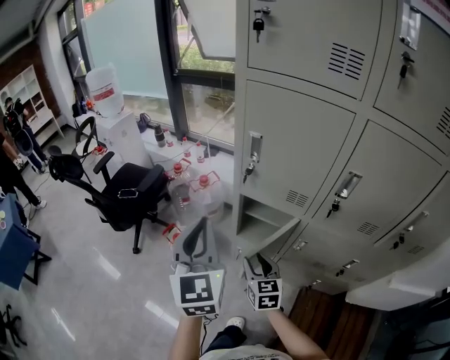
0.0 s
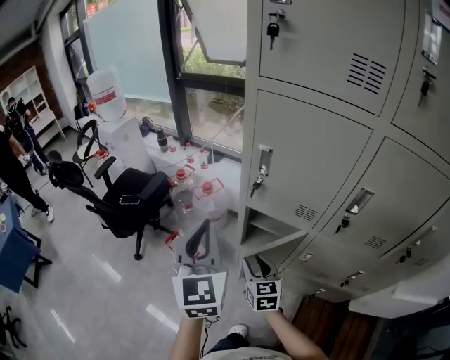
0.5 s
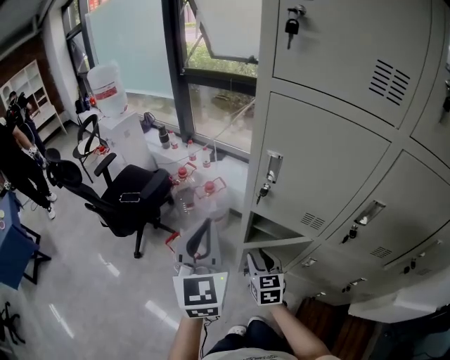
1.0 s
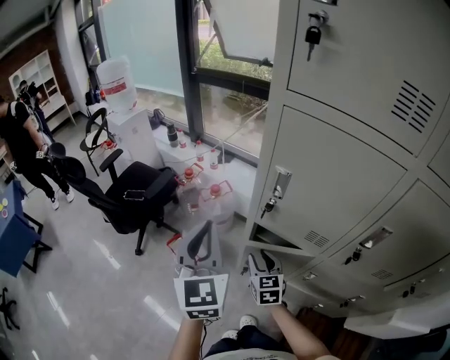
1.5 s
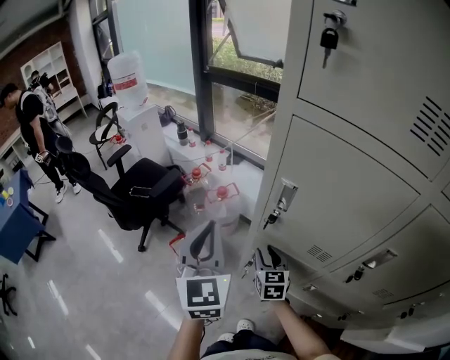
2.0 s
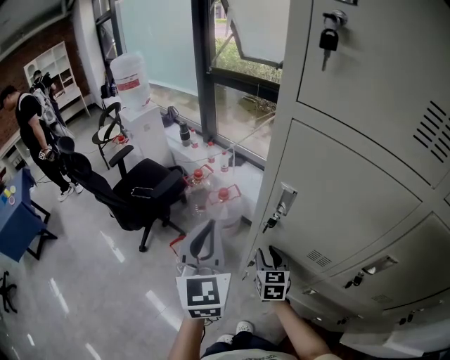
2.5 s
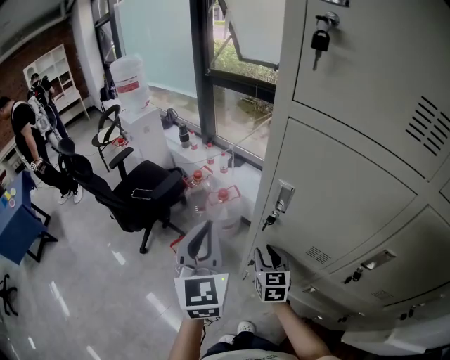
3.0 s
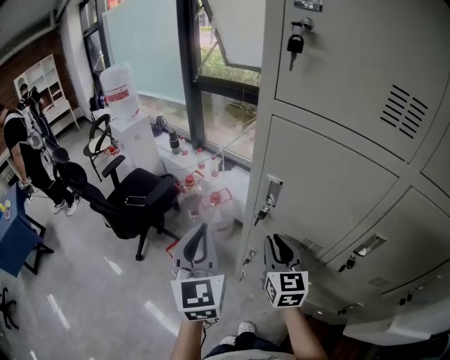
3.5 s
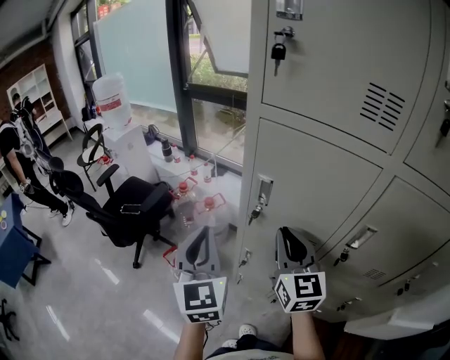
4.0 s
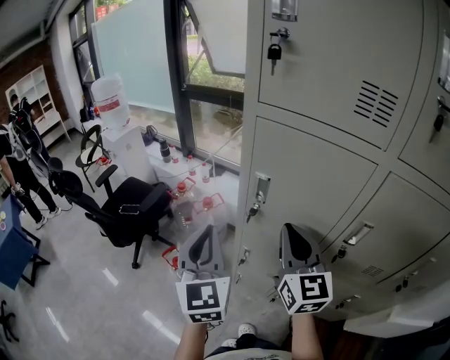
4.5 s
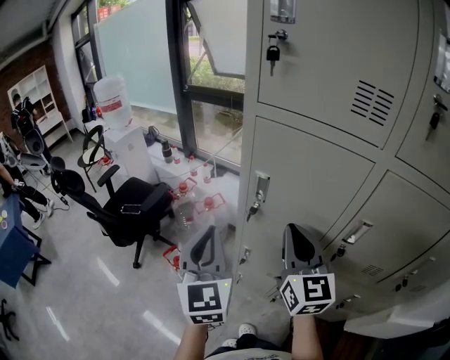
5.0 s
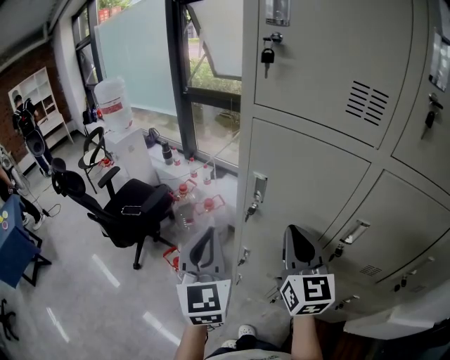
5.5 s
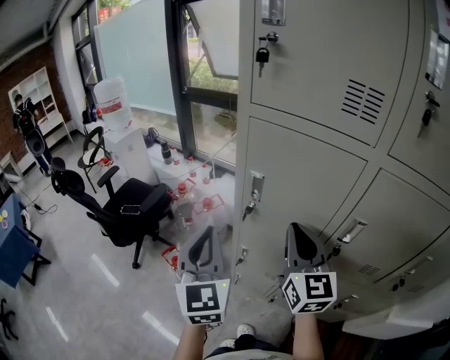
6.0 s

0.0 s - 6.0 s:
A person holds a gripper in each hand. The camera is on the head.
0.0 s - 2.0 s: Both grippers move forward, roughly 15 cm.
2.0 s - 4.0 s: The right gripper moves upward, approximately 25 cm, rotates approximately 20 degrees, and closes up.
4.0 s - 6.0 s: The right gripper shifts by about 5 cm.

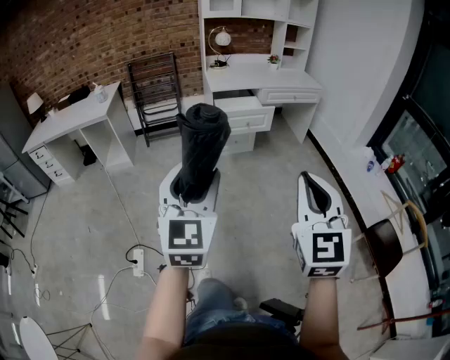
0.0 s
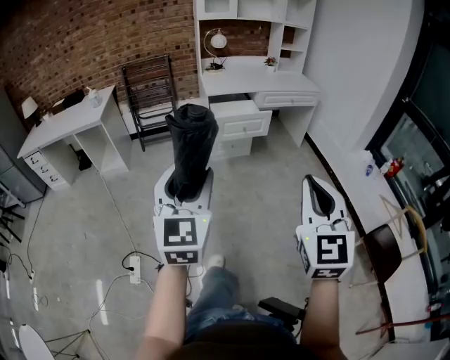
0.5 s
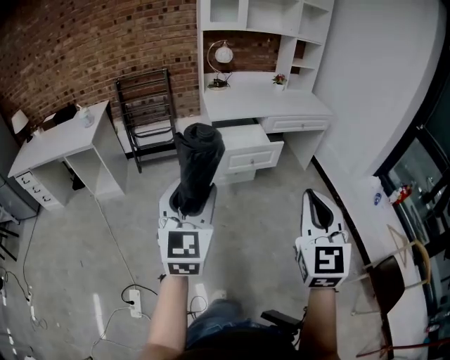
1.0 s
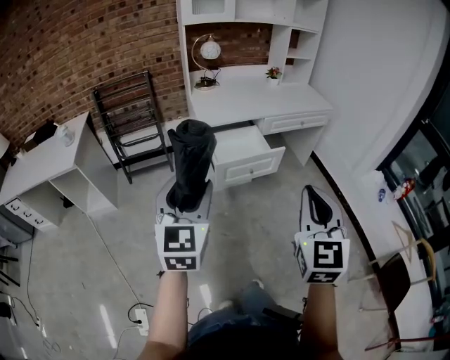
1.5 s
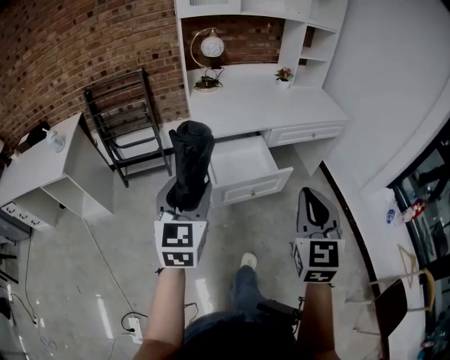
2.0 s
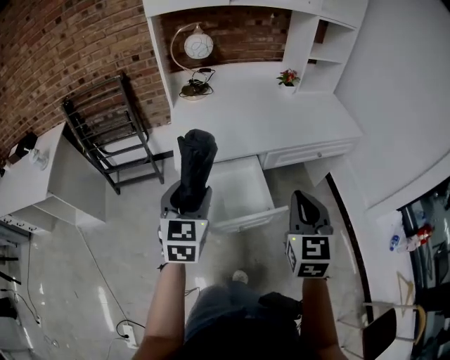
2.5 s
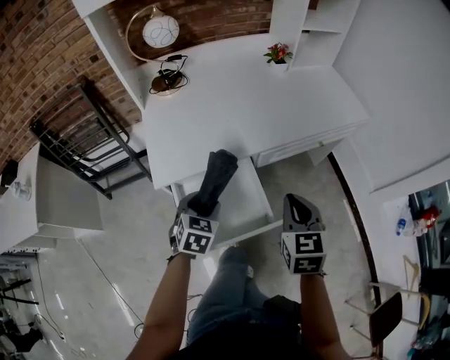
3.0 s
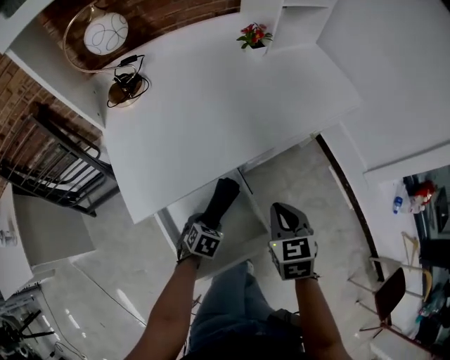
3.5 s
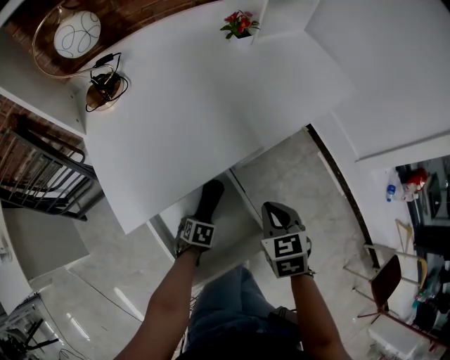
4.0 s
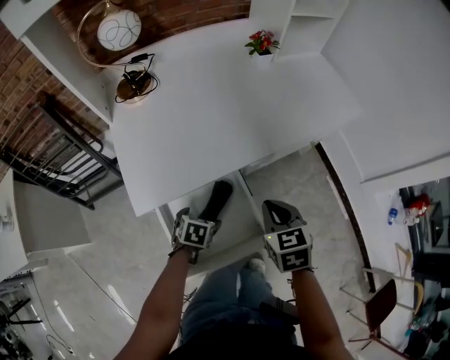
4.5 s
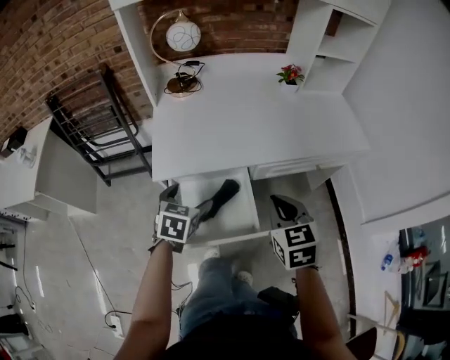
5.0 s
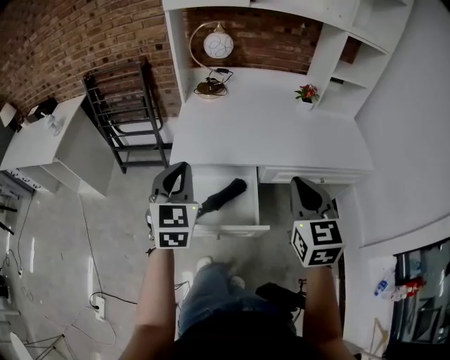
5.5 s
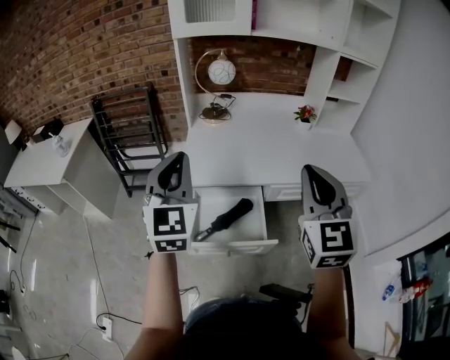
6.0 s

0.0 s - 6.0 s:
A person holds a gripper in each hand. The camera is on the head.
0.0 s - 2.0 s: Both grippers are carried forward, approximately 60 cm.
2.0 s - 4.0 s: The right gripper shifts by about 50 cm, and angles its fingers downward, by about 40 degrees, while the left gripper goes roughly 50 cm downward, and tilts its fingers approximately 70 degrees downward.
4.0 s - 6.0 s: The right gripper shifts roughly 35 cm upward, and tilts its fingers about 50 degrees upward. The left gripper heads upward, covering roughly 60 cm, angles its fingers upward, by some 80 degrees, and closes its fingers.

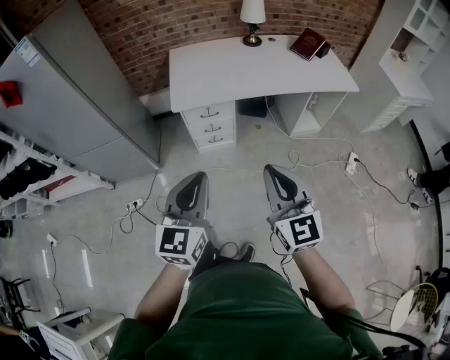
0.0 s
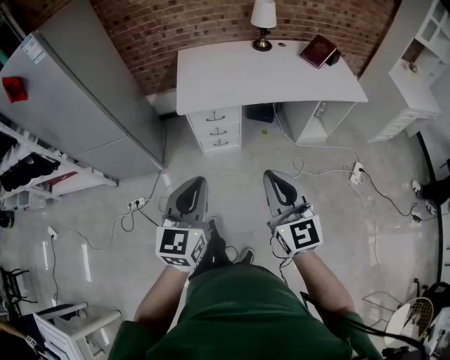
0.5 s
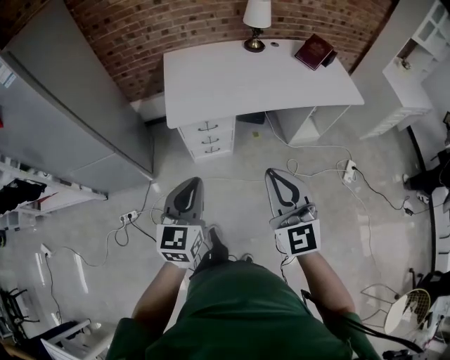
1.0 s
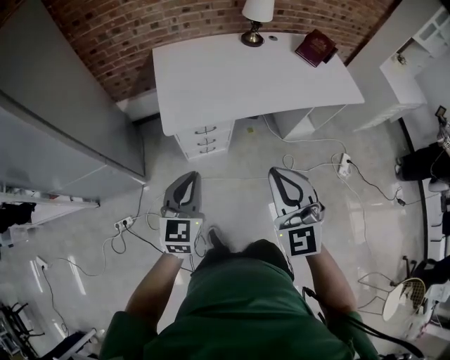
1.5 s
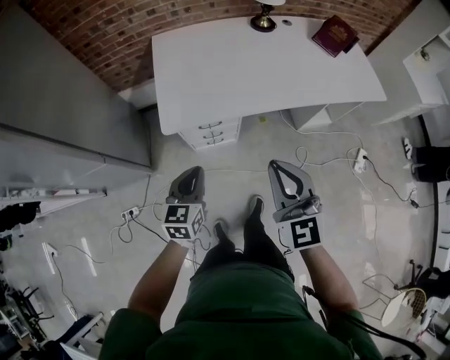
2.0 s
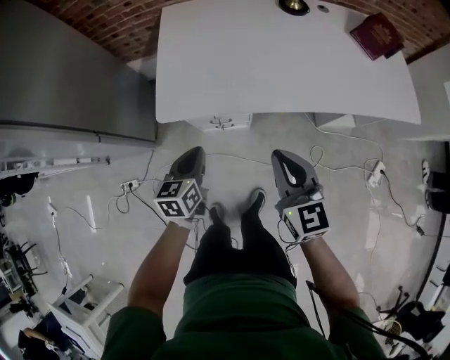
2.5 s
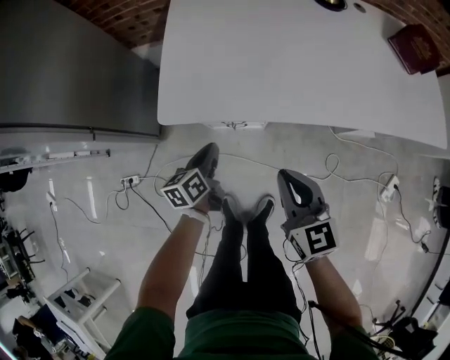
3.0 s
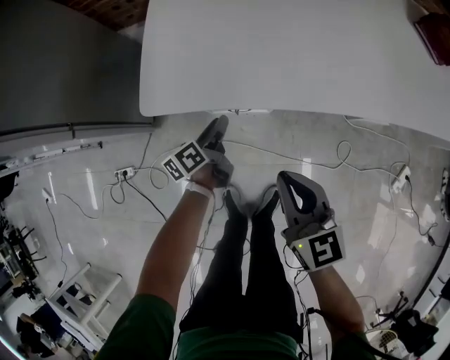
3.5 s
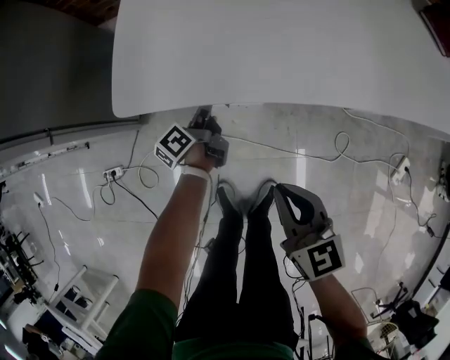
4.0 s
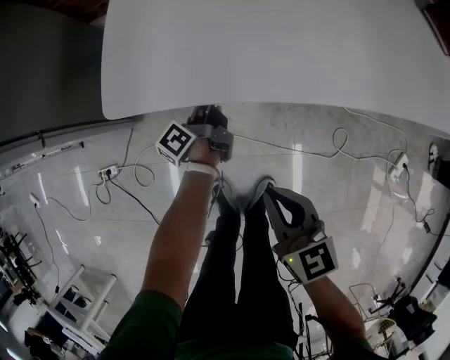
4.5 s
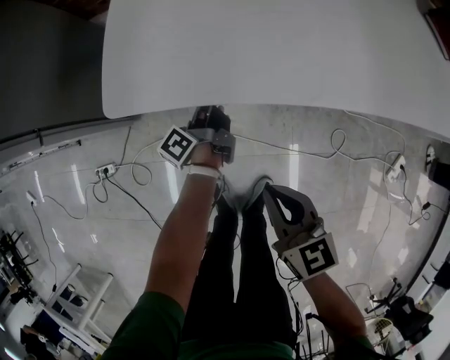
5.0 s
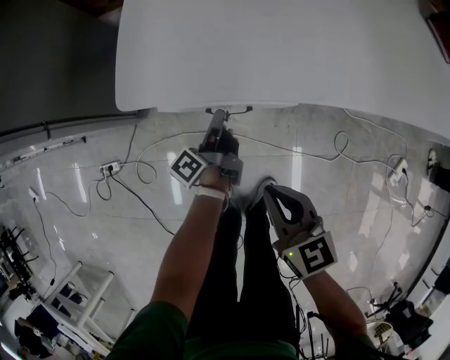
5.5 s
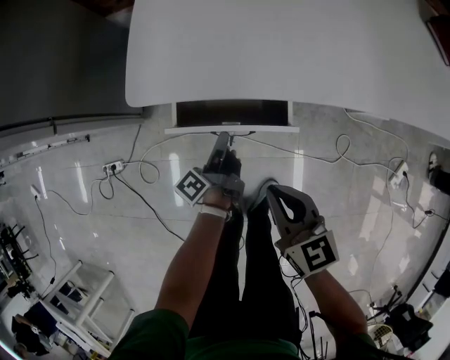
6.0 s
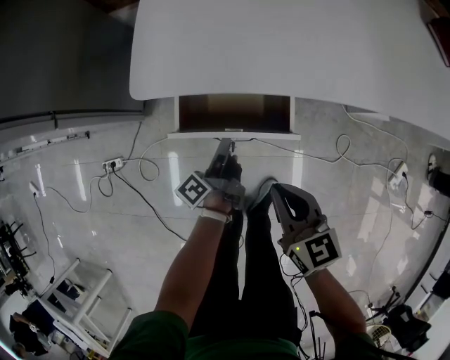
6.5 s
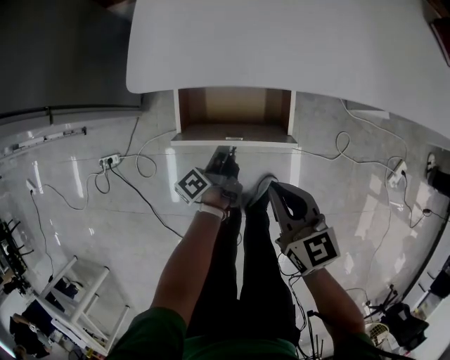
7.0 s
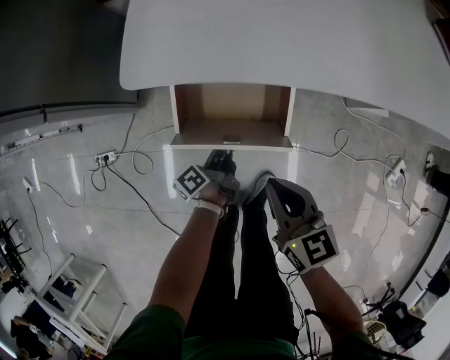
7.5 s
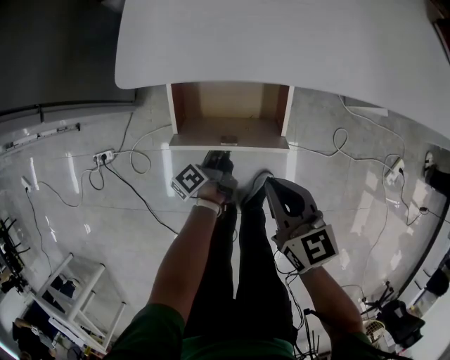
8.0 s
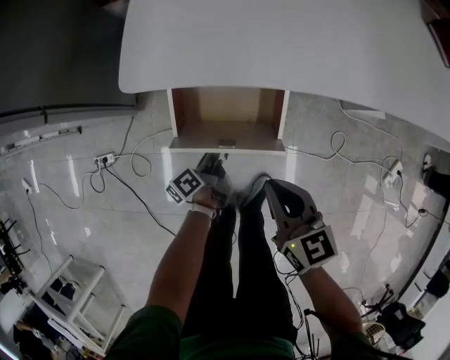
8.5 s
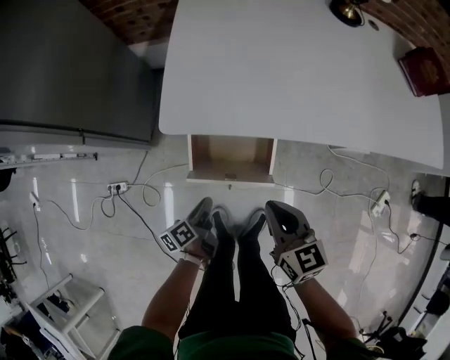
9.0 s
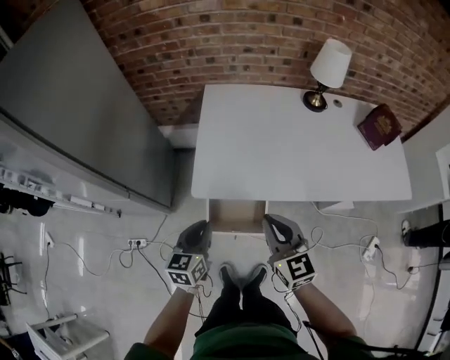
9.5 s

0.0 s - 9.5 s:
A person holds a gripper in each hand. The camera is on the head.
0.0 s - 2.0 s: The left gripper moves forward and downward, approximately 40 cm, and changes its angle by approximately 20 degrees. Meanwhile the right gripper is displaced forward by roughly 30 cm.
2.0 s - 4.0 s: The right gripper goes some 35 cm downward, and swivels some 30 degrees, while the left gripper heads downward and forward, covering about 40 cm, rotates around the line of its fingers by approximately 70 degrees, counterclockwise from behind, and opens up.
4.0 s - 5.5 s: The left gripper travels backward by roughly 5 cm, and closes up.
5.5 s - 7.5 s: The left gripper travels backward and downward by about 10 cm.
7.5 s - 9.5 s: The grippers both shift upward by approximately 35 cm. The right gripper changes its angle by some 30 degrees. Meanwhile the left gripper rotates around the line of its fingers by about 70 degrees, clockwise from behind.

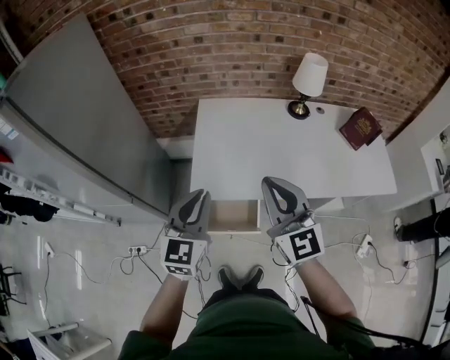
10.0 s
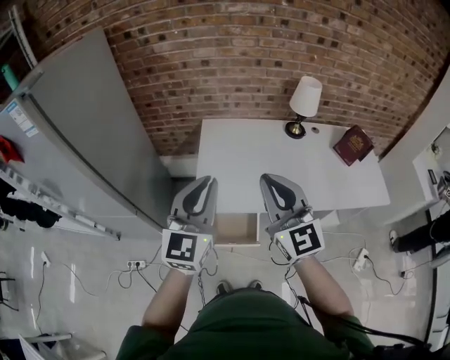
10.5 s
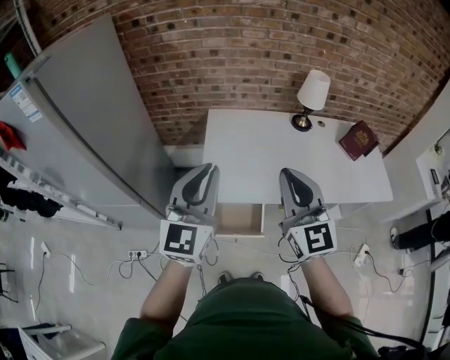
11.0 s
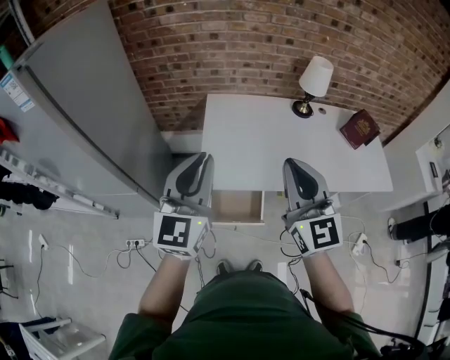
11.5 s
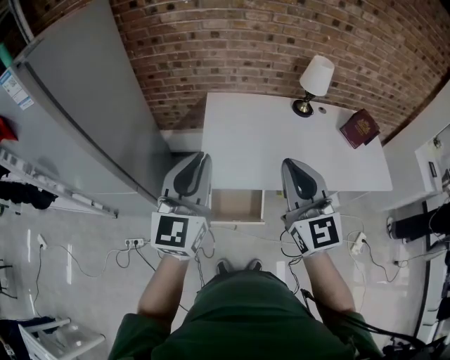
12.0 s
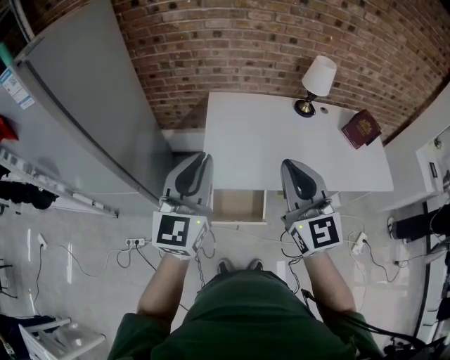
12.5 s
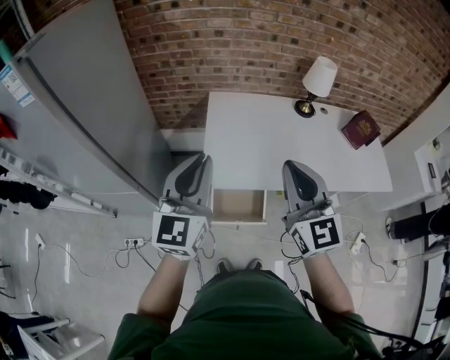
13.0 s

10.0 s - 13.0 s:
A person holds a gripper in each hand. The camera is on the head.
10.0 s - 11.5 s: The left gripper heads upward, covering some 10 cm. Meanwhile the right gripper goes approximately 5 cm upward.
11.5 s - 13.0 s: The grippers stay close to where they were, moving slightly.

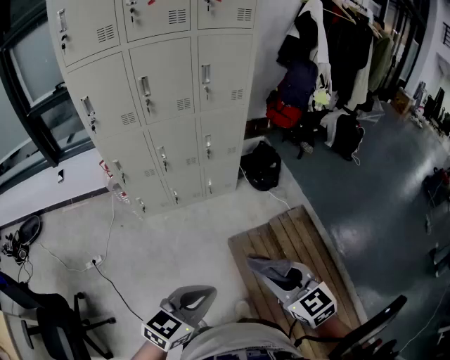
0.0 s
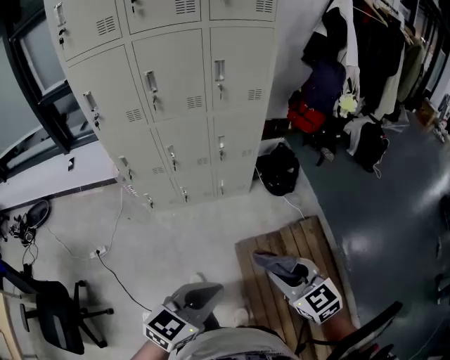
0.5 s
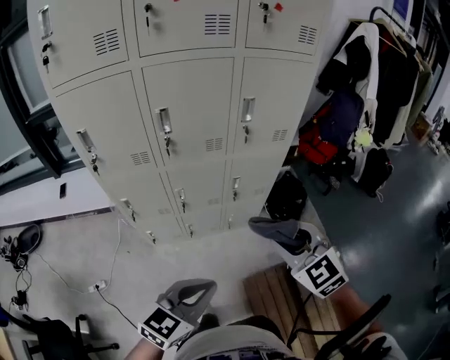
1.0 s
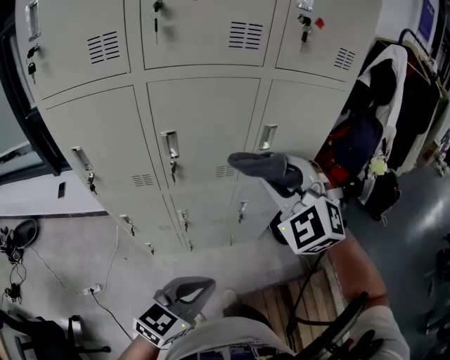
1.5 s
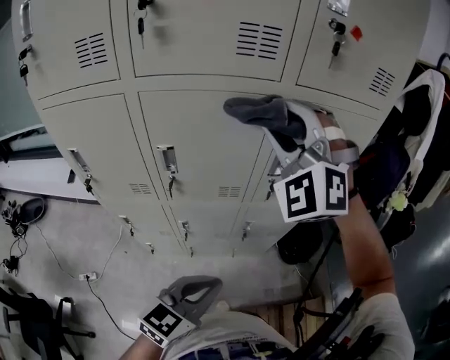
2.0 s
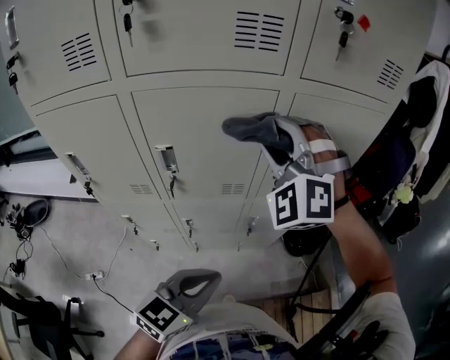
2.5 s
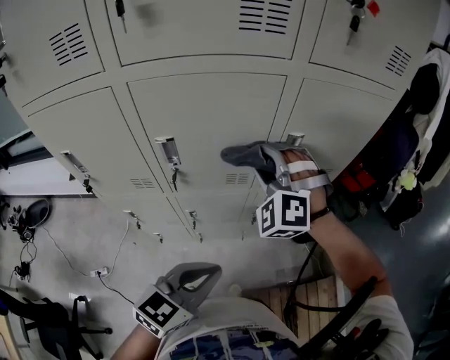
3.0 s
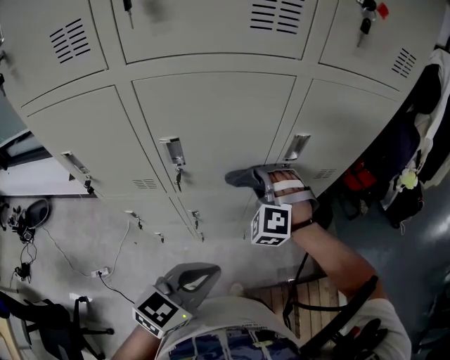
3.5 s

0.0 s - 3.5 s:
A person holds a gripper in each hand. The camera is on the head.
0.0 s - 2.0 s: The left gripper ends up about 50 cm from where it was.
2.0 s - 3.5 s: The left gripper shifts by roughly 5 cm.
